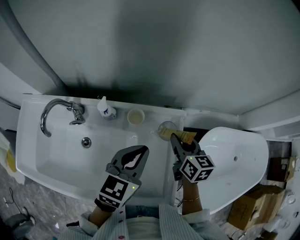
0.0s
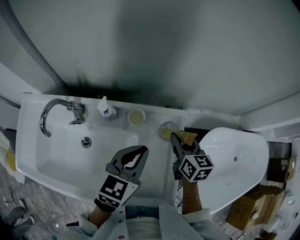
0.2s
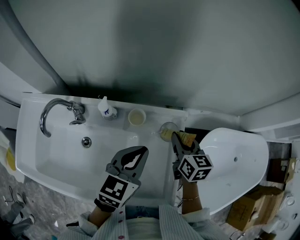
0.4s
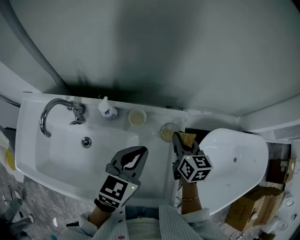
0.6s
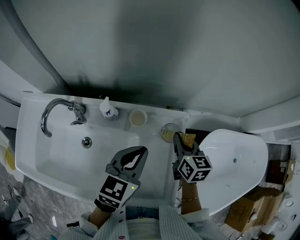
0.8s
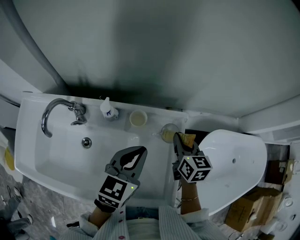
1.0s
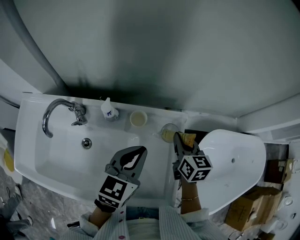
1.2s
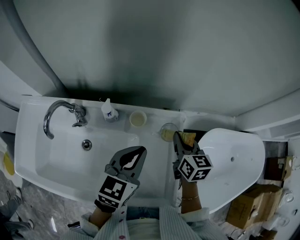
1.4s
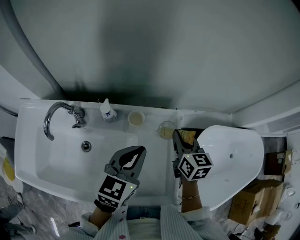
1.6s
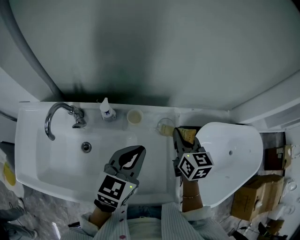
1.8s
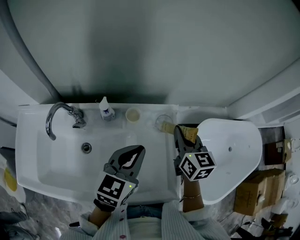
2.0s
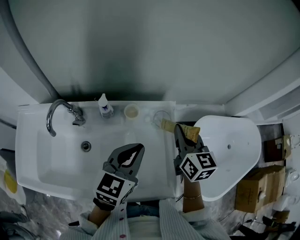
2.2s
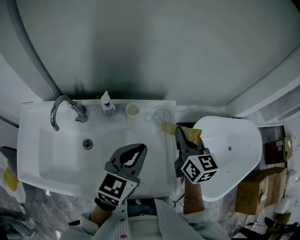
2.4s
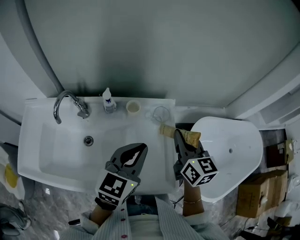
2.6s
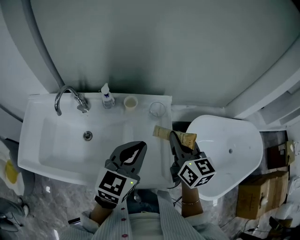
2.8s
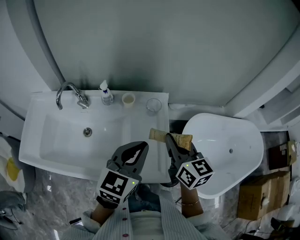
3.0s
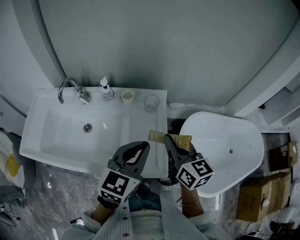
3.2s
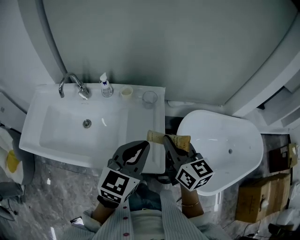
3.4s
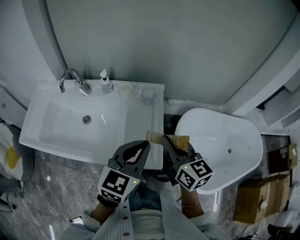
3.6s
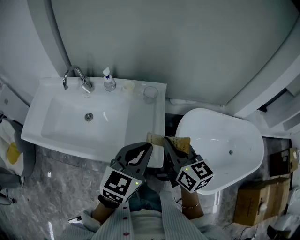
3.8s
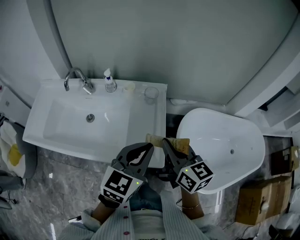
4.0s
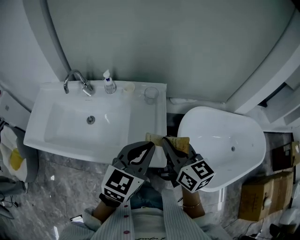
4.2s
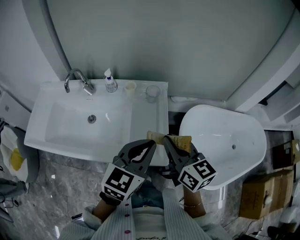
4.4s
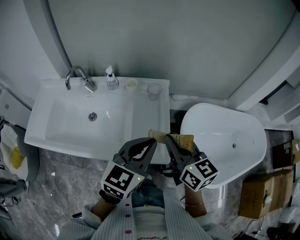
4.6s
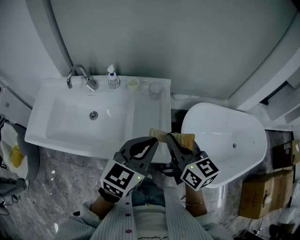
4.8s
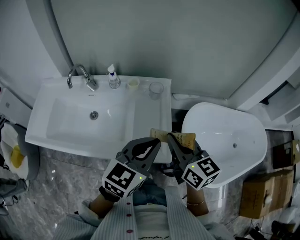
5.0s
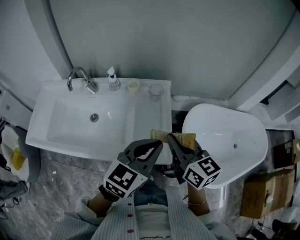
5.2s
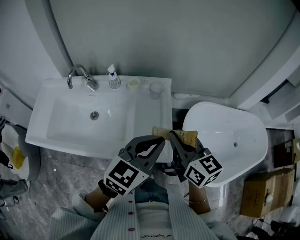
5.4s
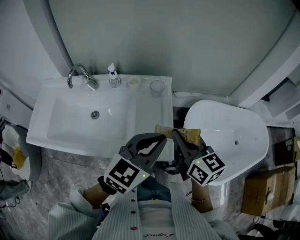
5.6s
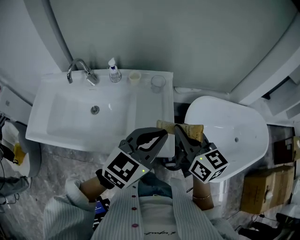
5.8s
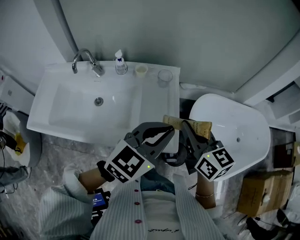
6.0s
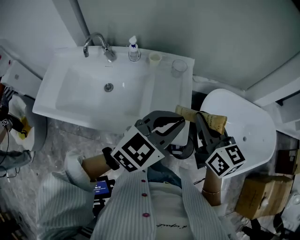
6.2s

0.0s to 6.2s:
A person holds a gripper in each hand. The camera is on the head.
0.0s to 1.6s: The right gripper closes up.
1.6s to 3.2s: The right gripper is displaced backward and upward by some 25 cm. Meanwhile the left gripper heads backward and to the right, covering roughly 20 cm.
3.2s to 4.6s: The two grippers go approximately 5 cm backward.
4.6s to 6.2s: There are only small adjustments of the grippers.

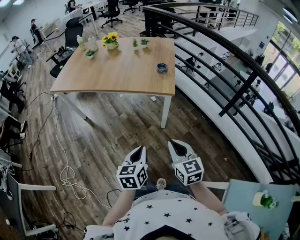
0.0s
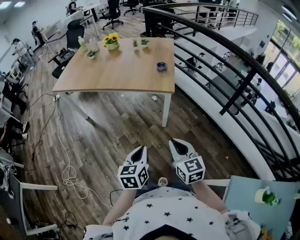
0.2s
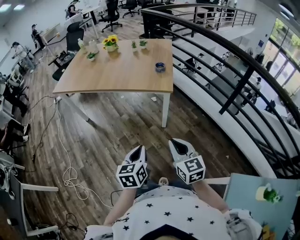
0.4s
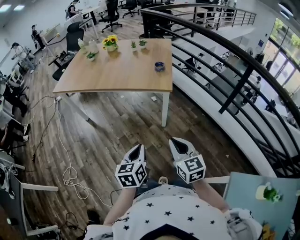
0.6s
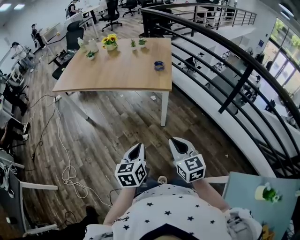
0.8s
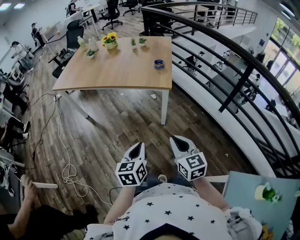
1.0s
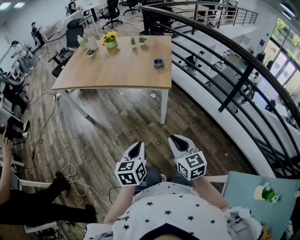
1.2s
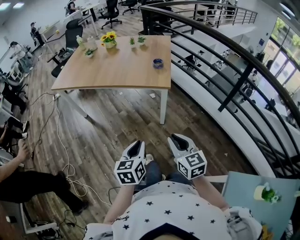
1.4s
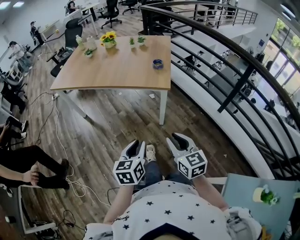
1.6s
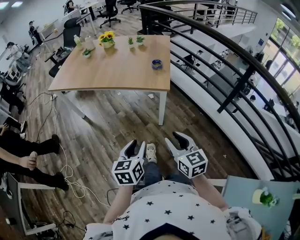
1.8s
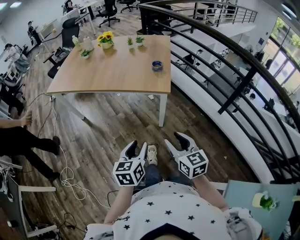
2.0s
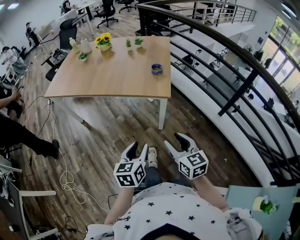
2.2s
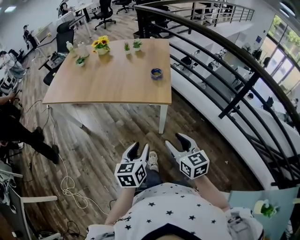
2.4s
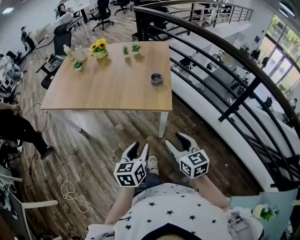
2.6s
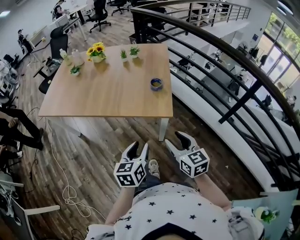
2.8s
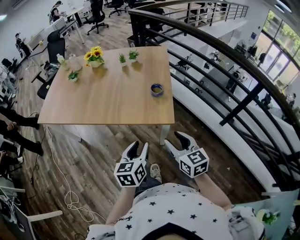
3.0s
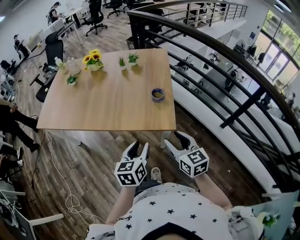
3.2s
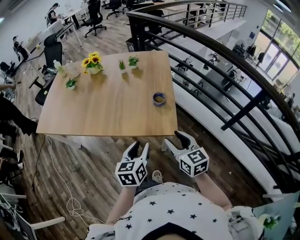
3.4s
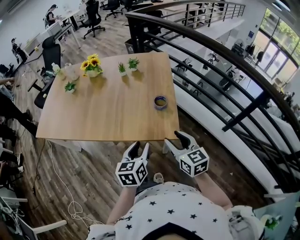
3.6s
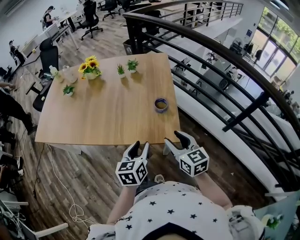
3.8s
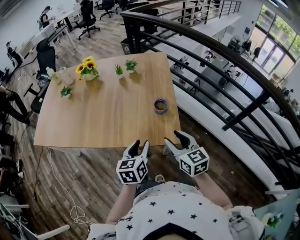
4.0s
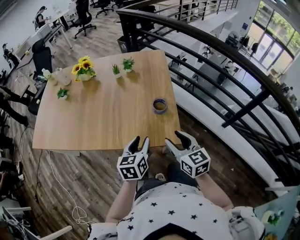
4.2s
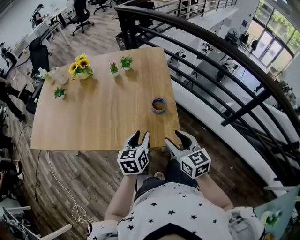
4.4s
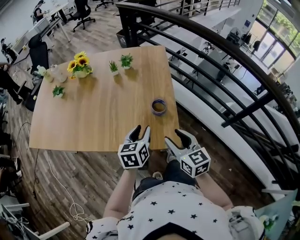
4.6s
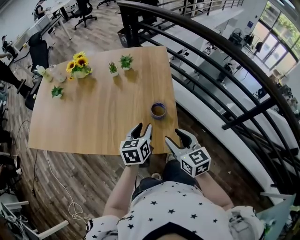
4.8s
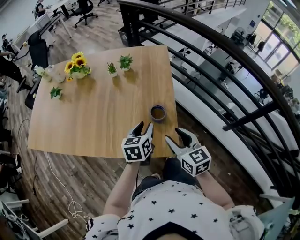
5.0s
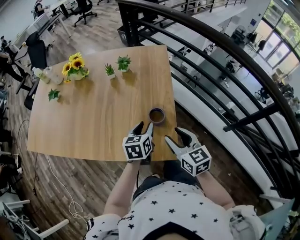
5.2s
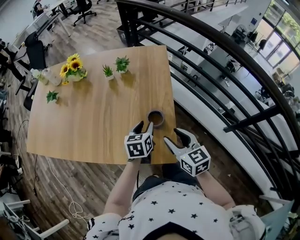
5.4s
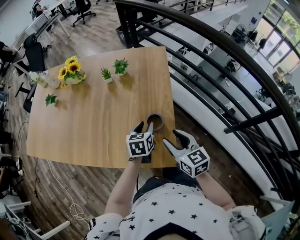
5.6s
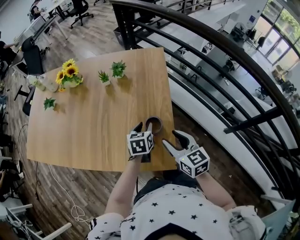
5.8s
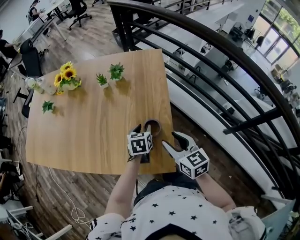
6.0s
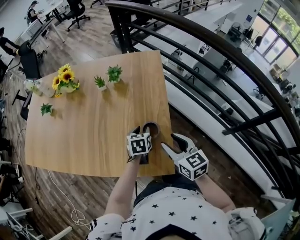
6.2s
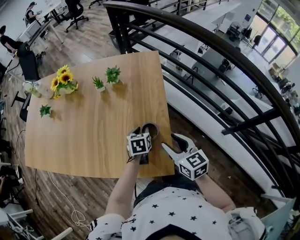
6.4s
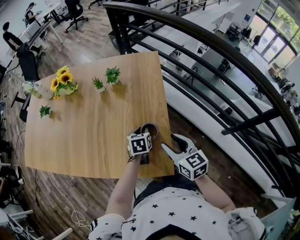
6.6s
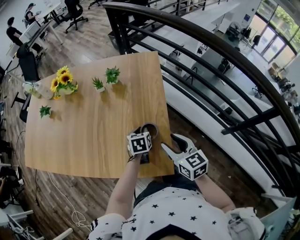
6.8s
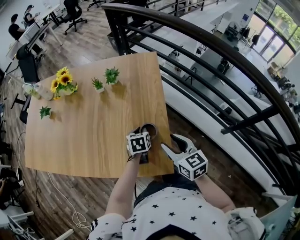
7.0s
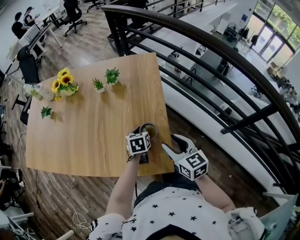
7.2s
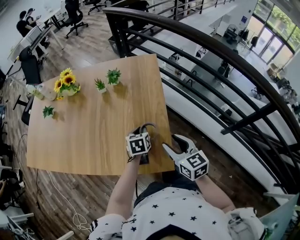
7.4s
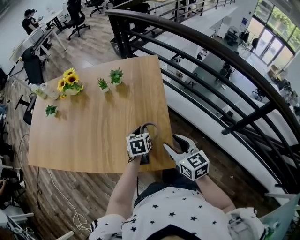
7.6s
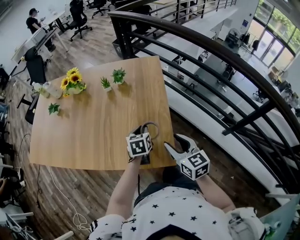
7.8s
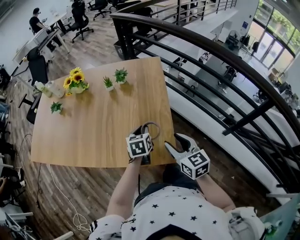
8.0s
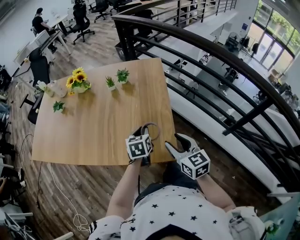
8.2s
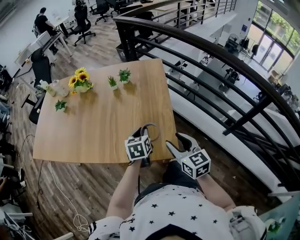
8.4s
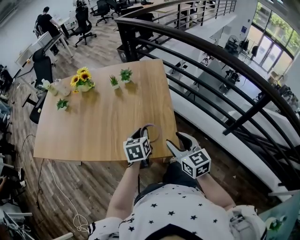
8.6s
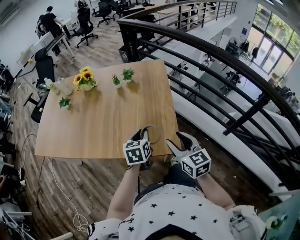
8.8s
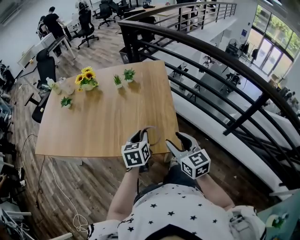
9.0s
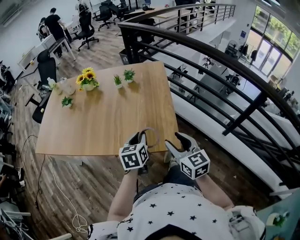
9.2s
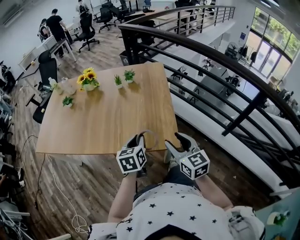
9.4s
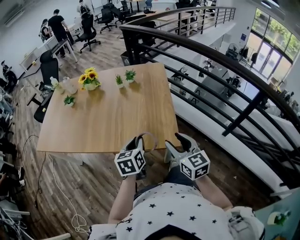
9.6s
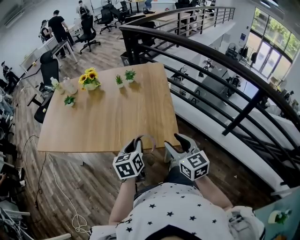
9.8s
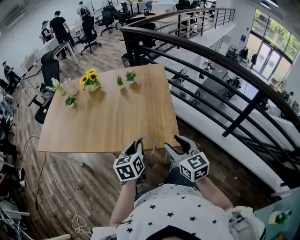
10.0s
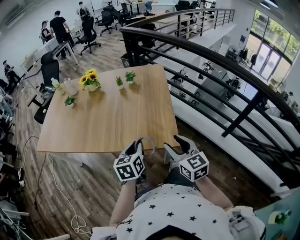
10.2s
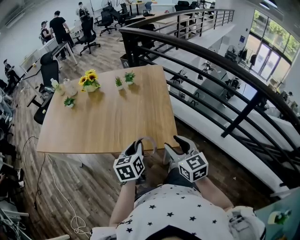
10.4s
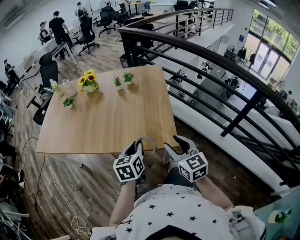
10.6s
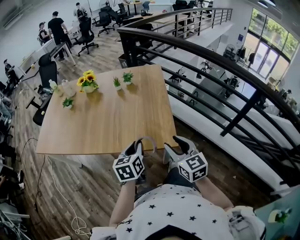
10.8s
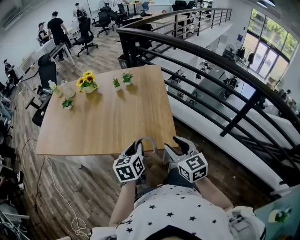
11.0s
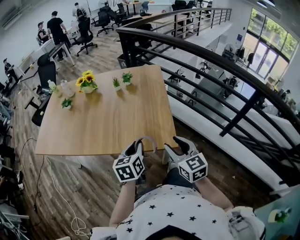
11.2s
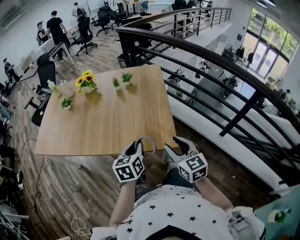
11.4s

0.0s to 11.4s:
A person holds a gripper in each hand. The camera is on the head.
0.0s to 1.4s: The right gripper shifts by about 5 cm.
1.4s to 2.8s: The two grippers go roughly 25 cm forward. The left gripper opens its fingers, while the right gripper opens up.
2.8s to 4.2s: Both grippers move forward, about 20 cm.
4.2s to 5.6s: The right gripper is displaced forward by approximately 15 cm, while the left gripper goes roughly 25 cm forward, to the right and downward.
5.6s to 7.2s: The left gripper shifts by some 5 cm.
7.2s to 8.6s: The left gripper heads backward, upward and to the left, covering approximately 15 cm, while the right gripper moves backward, to the left and upward, roughly 10 cm.
8.6s to 10.0s: The right gripper travels backward by approximately 10 cm. The left gripper shifts roughly 15 cm backward and to the left.
10.0s to 11.4s: The grippers make only small movements.

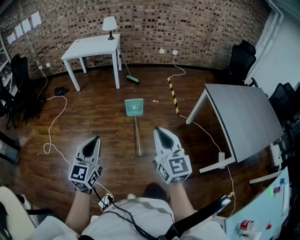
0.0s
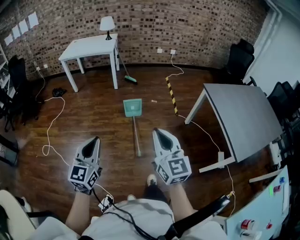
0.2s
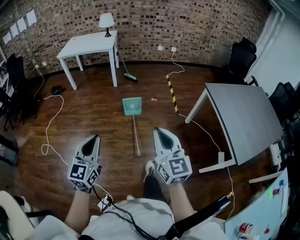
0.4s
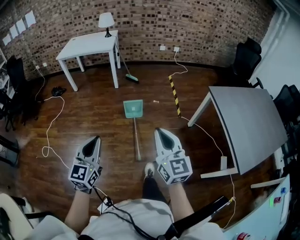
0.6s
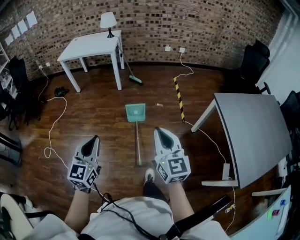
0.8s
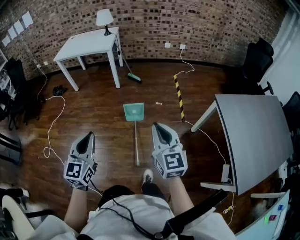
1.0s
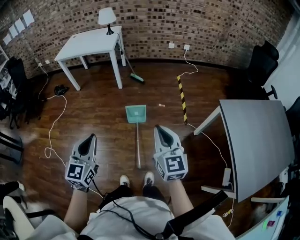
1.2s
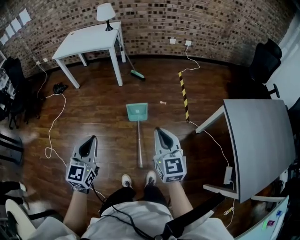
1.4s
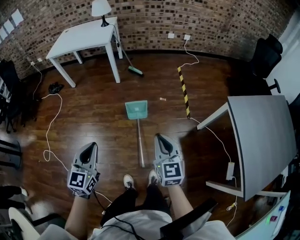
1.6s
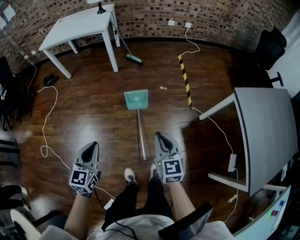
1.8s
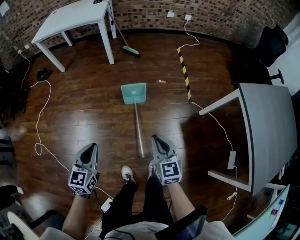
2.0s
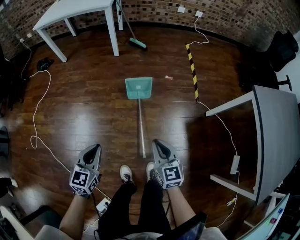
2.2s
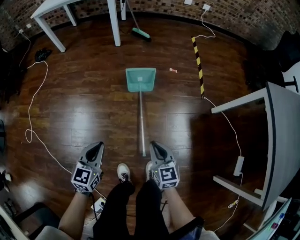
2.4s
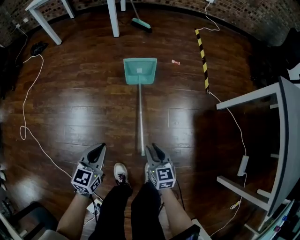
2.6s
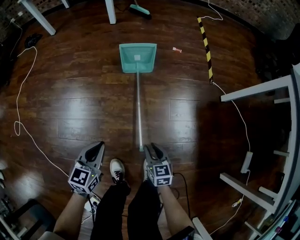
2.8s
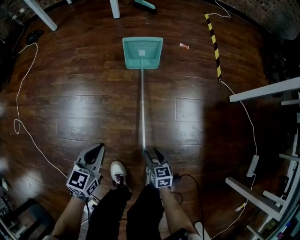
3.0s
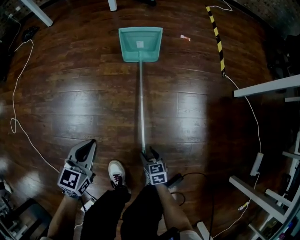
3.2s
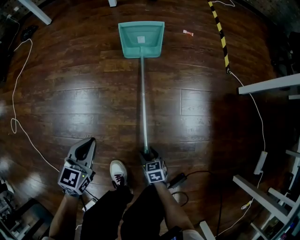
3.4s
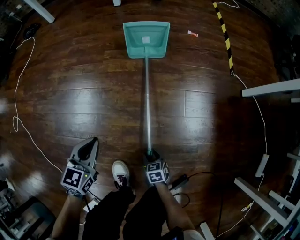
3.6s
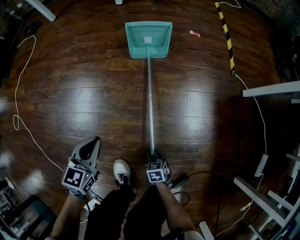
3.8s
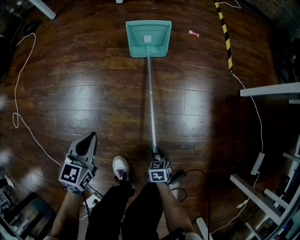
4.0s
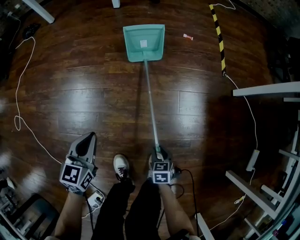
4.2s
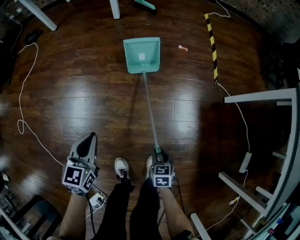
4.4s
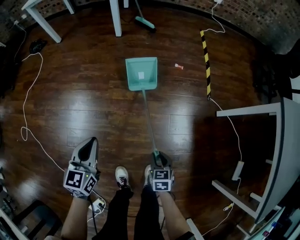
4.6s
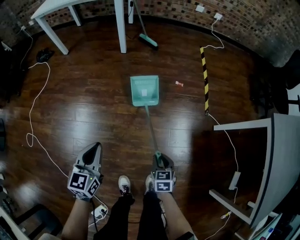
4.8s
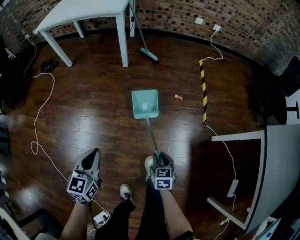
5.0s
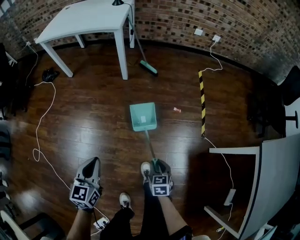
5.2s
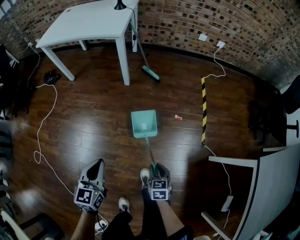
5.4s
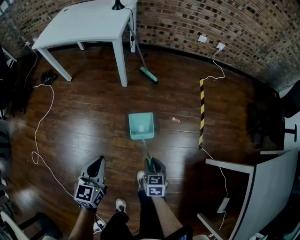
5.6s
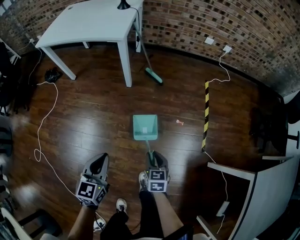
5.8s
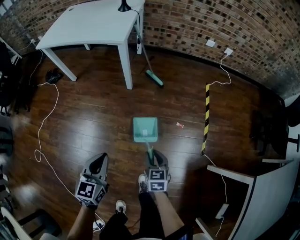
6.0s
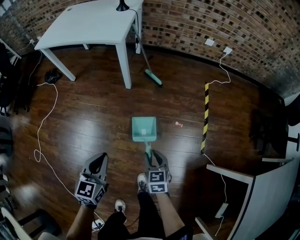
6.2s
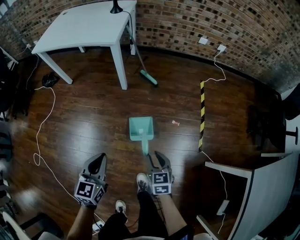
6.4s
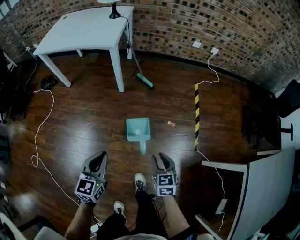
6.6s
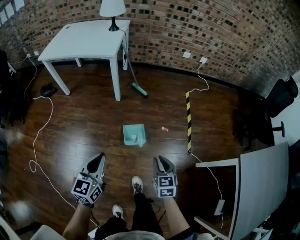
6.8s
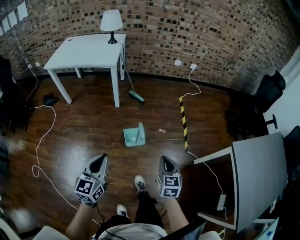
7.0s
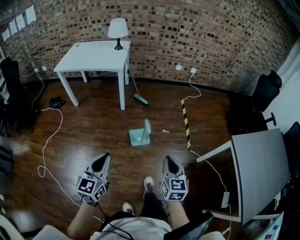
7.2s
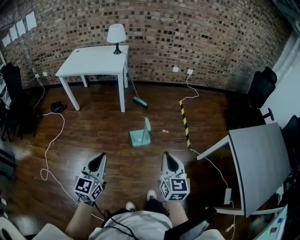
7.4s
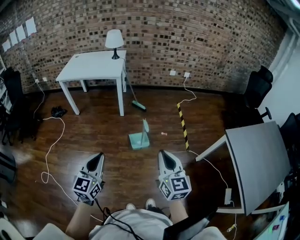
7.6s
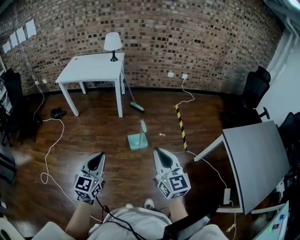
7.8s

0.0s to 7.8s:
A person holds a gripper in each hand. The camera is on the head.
0.0s to 1.6s: The left gripper is displaced forward by some 30 cm. Meanwhile the right gripper travels forward and downward by some 35 cm.
1.6s to 3.2s: Both grippers move downward, roughly 70 cm. The left gripper swivels about 20 degrees. Meanwhile the right gripper tilts its fingers roughly 30 degrees downward, and opens its fingers.
3.2s to 4.6s: The right gripper goes roughly 30 cm upward, and closes its fingers. Meanwhile the left gripper shifts approximately 25 cm upward and forward.
4.6s to 6.2s: The grippers both shift forward and upward by roughly 40 cm.
6.2s to 7.8s: The left gripper moves backward and upward, roughly 40 cm, and rotates approximately 20 degrees; the right gripper heads upward and backward, covering roughly 50 cm, angles its fingers upward, by roughly 40 degrees, and closes up.
